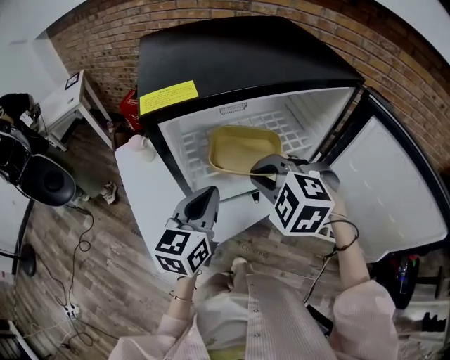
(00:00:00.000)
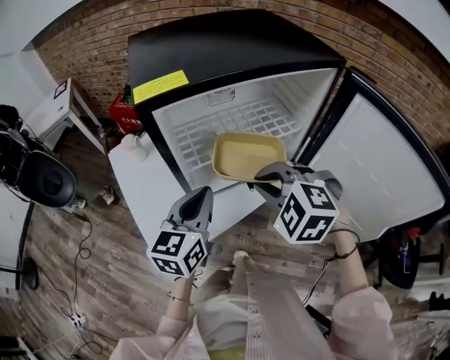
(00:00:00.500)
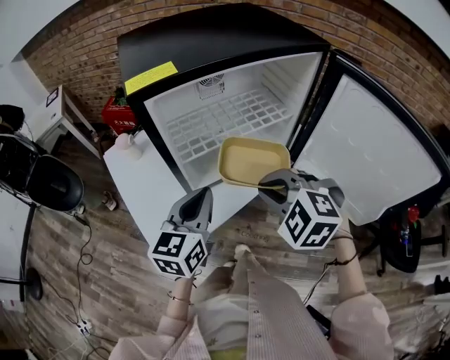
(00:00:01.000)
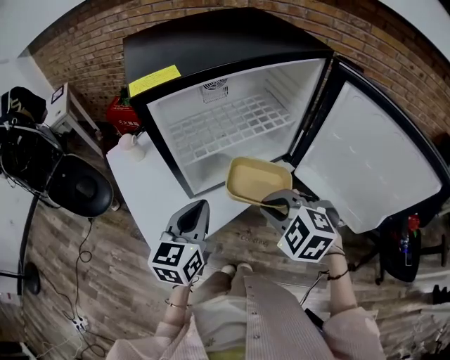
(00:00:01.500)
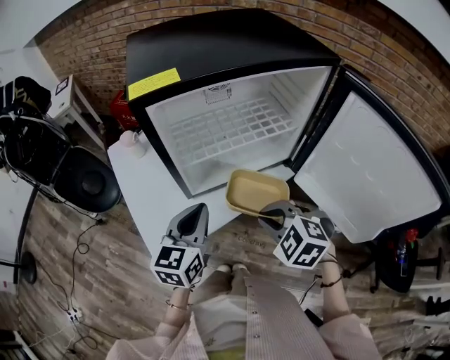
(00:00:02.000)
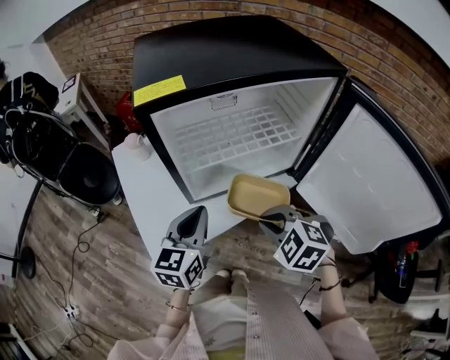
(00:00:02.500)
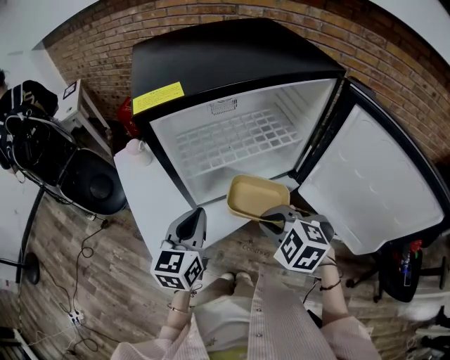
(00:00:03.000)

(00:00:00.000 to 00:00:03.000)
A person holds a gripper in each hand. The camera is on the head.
00:00:00.000 - 00:00:01.500: The right gripper is displaced backward and downward by some 15 cm, while the left gripper is displaced backward by roughly 5 cm.
00:00:01.500 - 00:00:03.000: There are only small adjustments of the grippers.

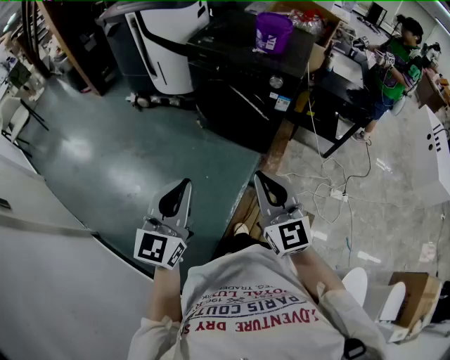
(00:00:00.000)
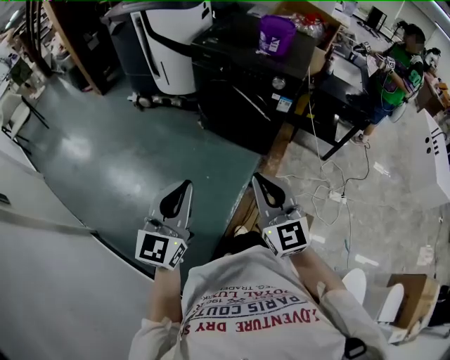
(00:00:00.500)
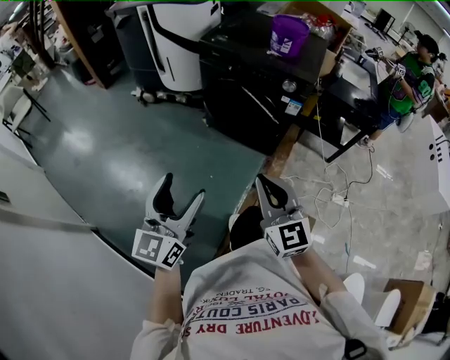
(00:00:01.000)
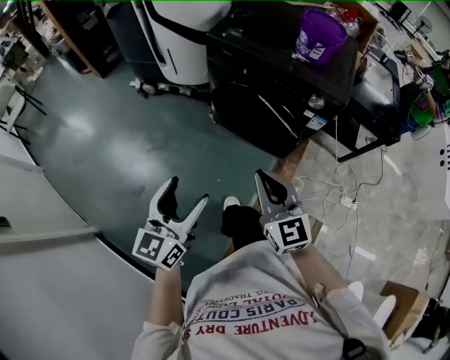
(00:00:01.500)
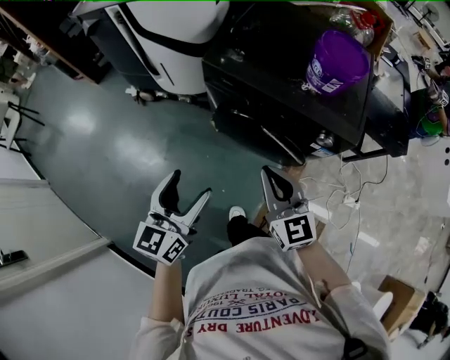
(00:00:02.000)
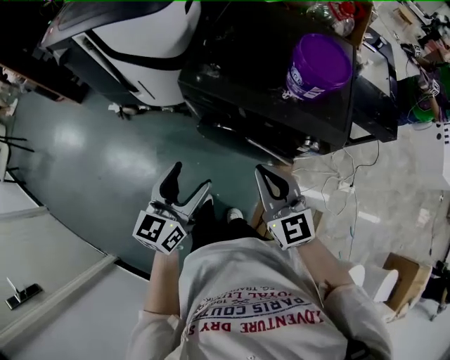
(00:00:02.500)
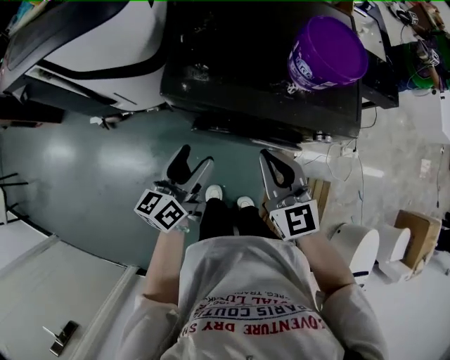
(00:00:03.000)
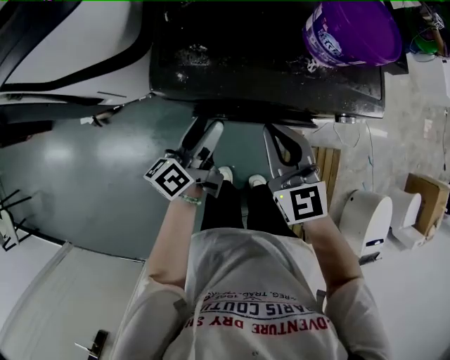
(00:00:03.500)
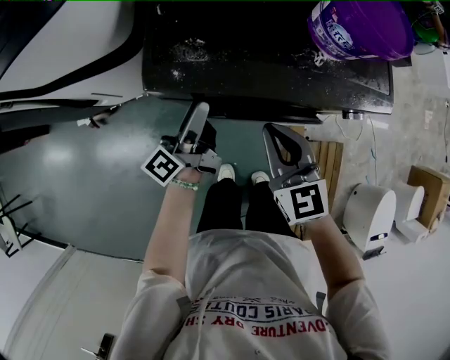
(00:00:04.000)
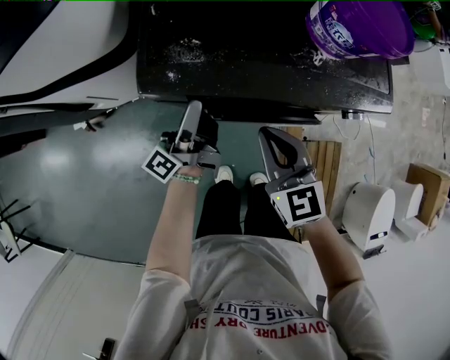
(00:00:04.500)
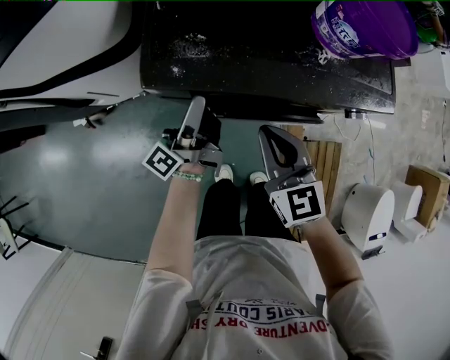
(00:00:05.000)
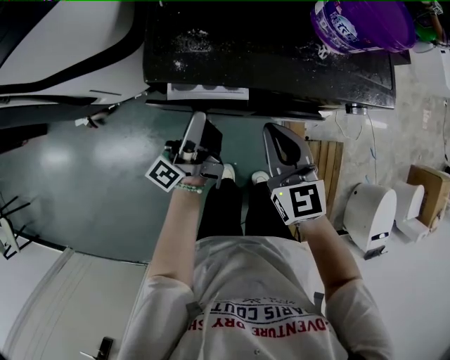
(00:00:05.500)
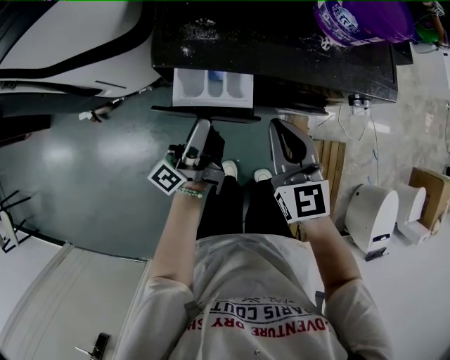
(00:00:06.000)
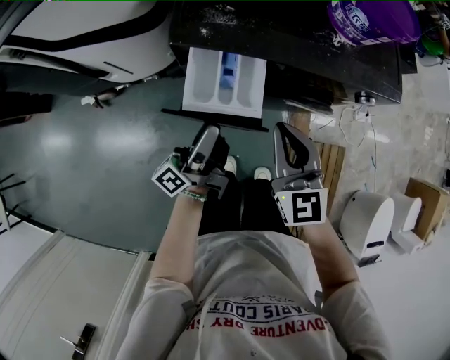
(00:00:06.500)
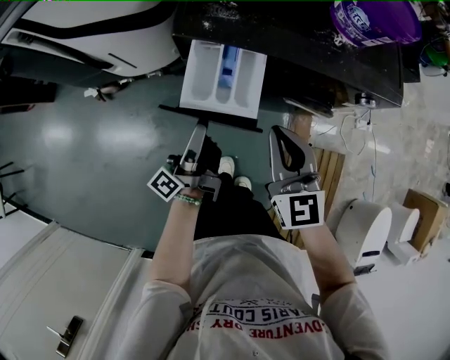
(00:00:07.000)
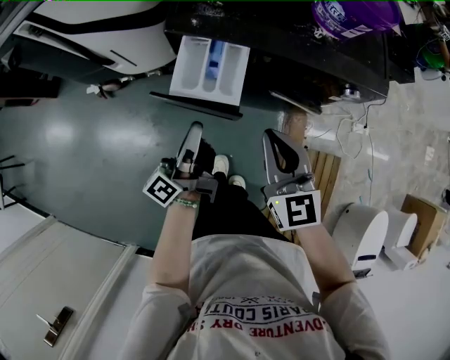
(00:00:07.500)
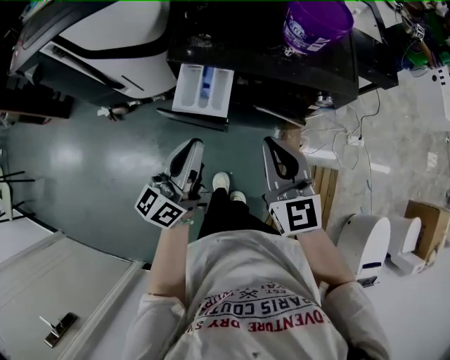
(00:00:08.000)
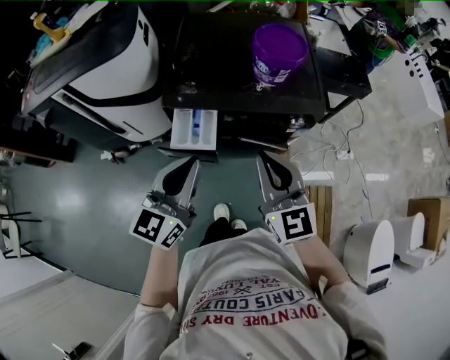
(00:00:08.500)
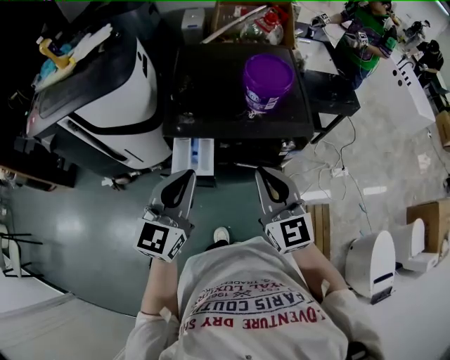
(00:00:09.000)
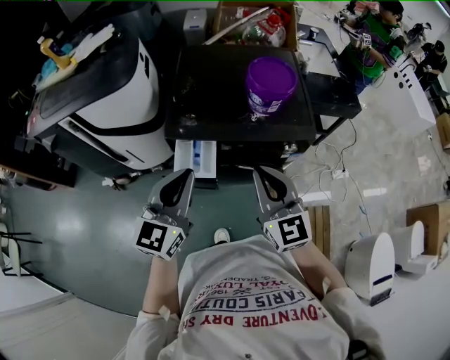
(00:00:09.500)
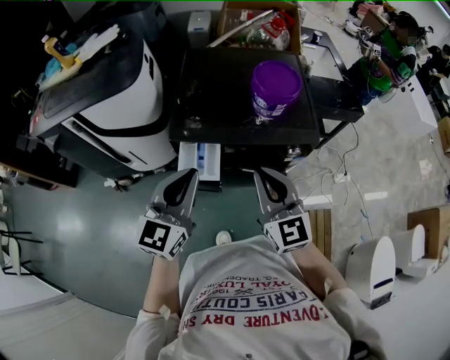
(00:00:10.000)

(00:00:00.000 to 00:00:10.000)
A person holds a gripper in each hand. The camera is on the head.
00:00:00.000 - 00:00:02.000: Both grippers move forward, about 40 cm. The left gripper changes its angle by some 20 degrees, and opens its fingers.
00:00:02.000 - 00:00:04.000: The left gripper moves approximately 40 cm, and rolls counterclockwise, seen from behind, by some 60 degrees. The right gripper moves roughly 20 cm, and rotates about 30 degrees.
00:00:04.000 - 00:00:06.000: The left gripper travels backward by some 5 cm.
00:00:06.000 - 00:00:08.000: Both grippers travel together upward and backward, about 20 cm. The left gripper rotates around the line of its fingers by some 40 degrees, clockwise from behind, and closes up.
00:00:08.000 - 00:00:10.000: Both grippers move upward, some 15 cm. The left gripper rotates about 40 degrees.

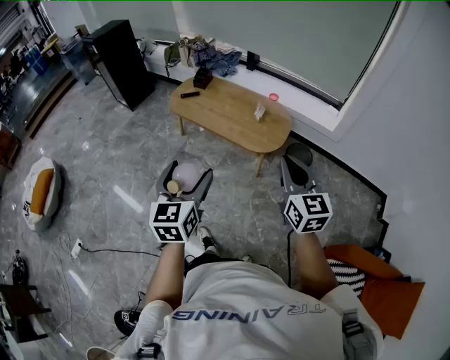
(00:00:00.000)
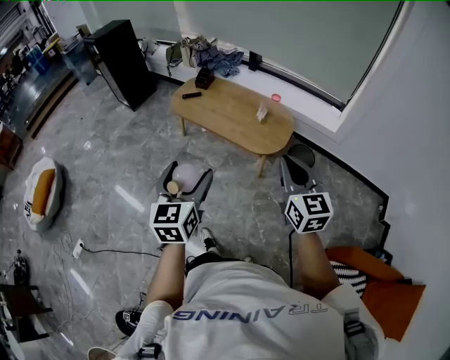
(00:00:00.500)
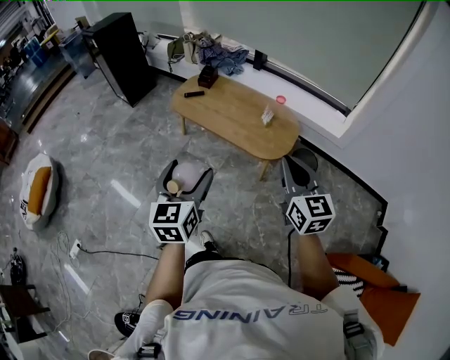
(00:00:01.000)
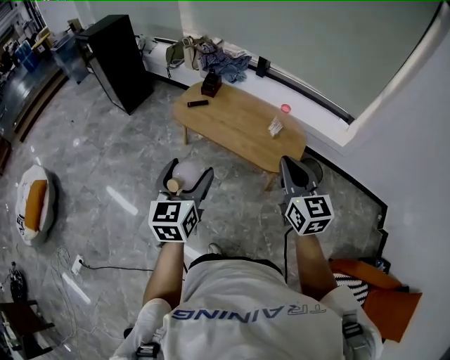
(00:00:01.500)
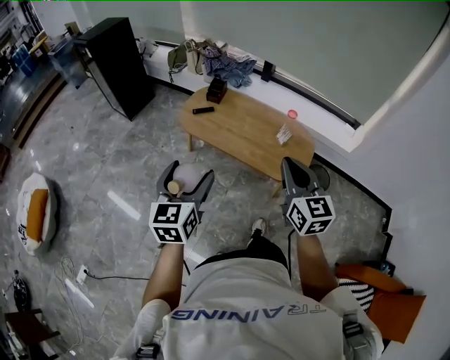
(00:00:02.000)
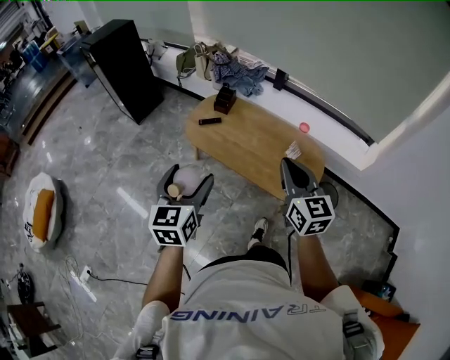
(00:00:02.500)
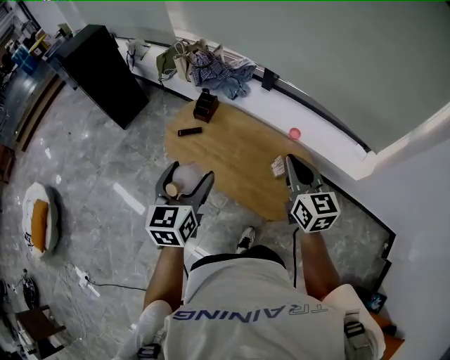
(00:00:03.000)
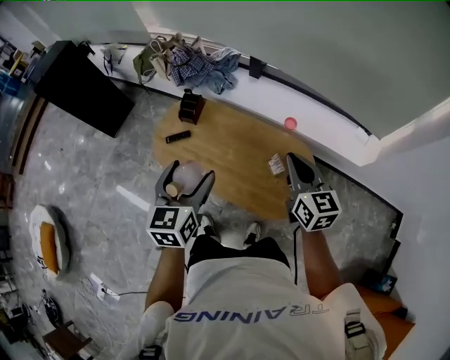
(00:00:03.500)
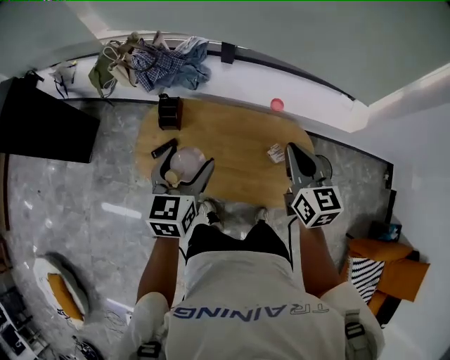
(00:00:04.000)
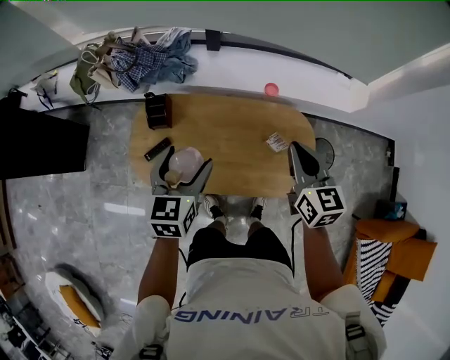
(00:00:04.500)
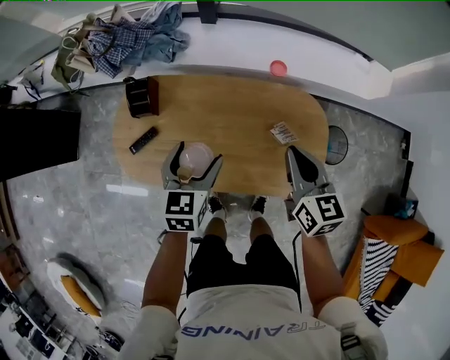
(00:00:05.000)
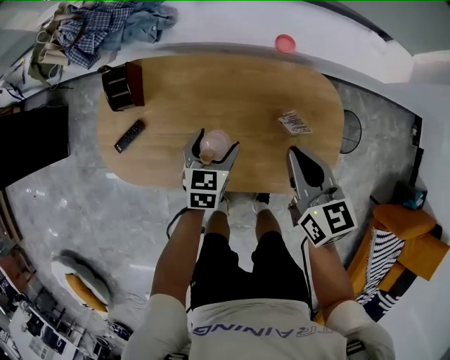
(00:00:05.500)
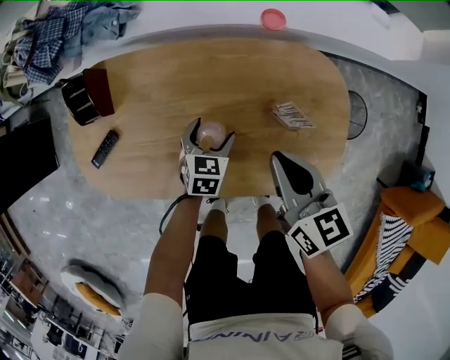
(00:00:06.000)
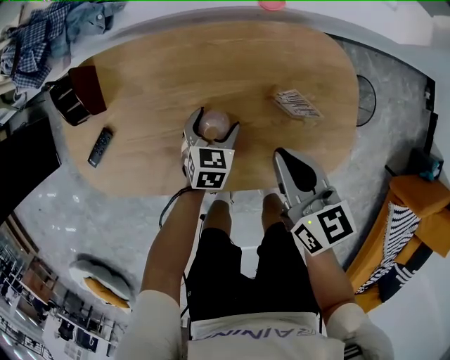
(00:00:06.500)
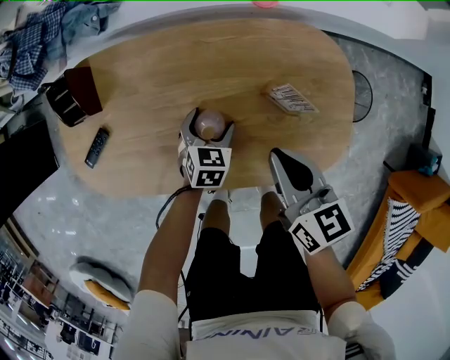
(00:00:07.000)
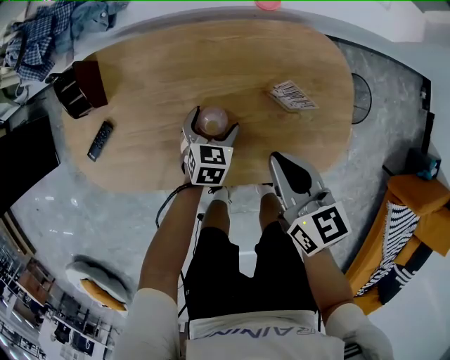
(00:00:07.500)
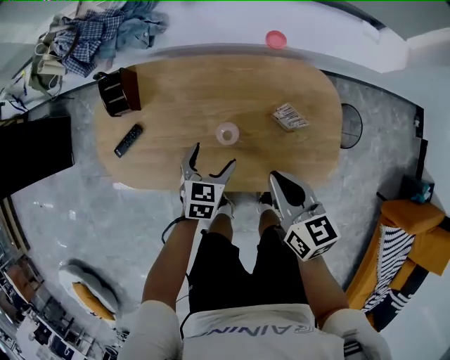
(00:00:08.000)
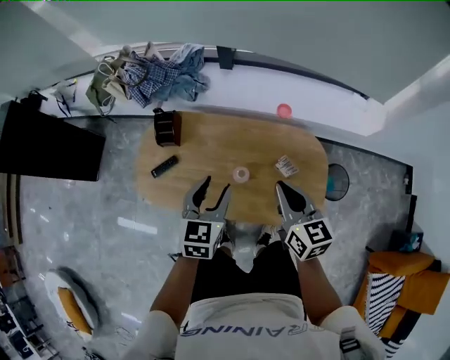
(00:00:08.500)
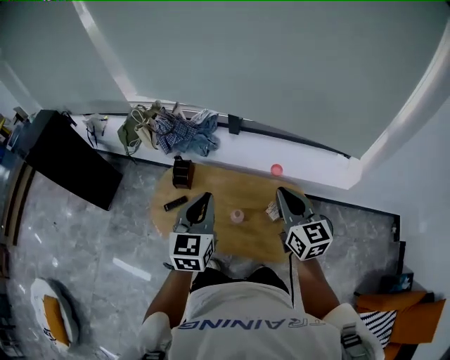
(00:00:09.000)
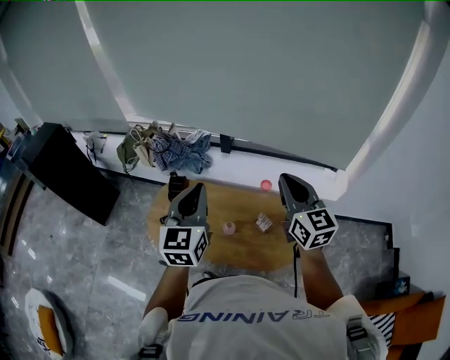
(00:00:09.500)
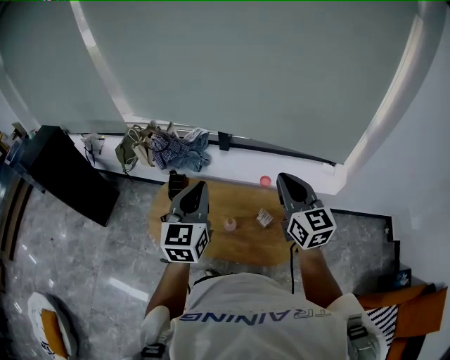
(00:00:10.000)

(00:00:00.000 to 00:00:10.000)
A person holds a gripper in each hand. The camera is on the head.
00:00:00.000 - 00:00:02.000: The grippers both shift forward and to the left by roughly 30 cm.
00:00:02.000 - 00:00:04.000: The two grippers travel together, forward, some 50 cm. The left gripper swivels approximately 30 degrees; the right gripper rotates some 20 degrees.
00:00:04.000 - 00:00:06.000: The right gripper shifts approximately 35 cm downward, and turns by about 20 degrees. The left gripper travels downward by some 50 cm, and turns by about 30 degrees.
00:00:06.000 - 00:00:08.000: The left gripper travels upward and backward by about 10 cm, while the right gripper travels backward by roughly 5 cm.
00:00:08.000 - 00:00:10.000: Both grippers move upward, roughly 50 cm. The right gripper changes its angle by some 40 degrees; the left gripper angles its fingers upward, by about 40 degrees, and closes up.

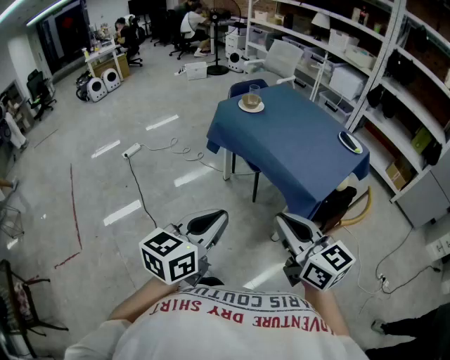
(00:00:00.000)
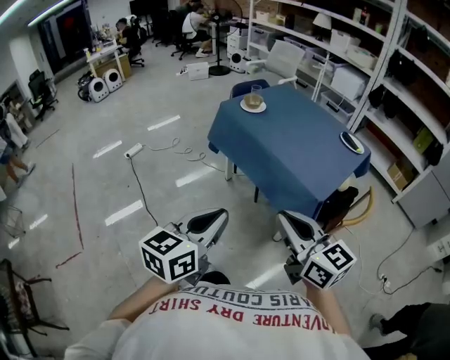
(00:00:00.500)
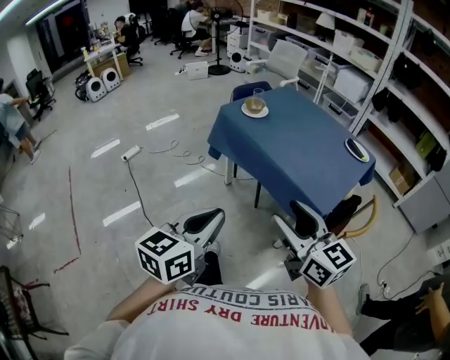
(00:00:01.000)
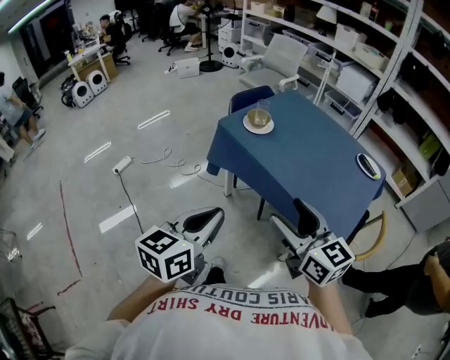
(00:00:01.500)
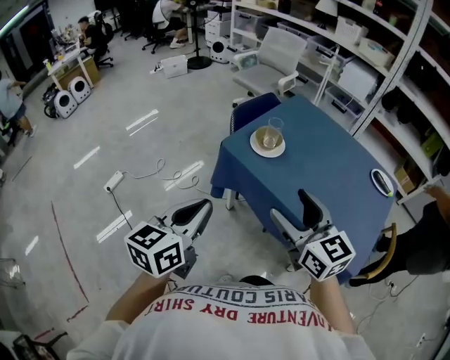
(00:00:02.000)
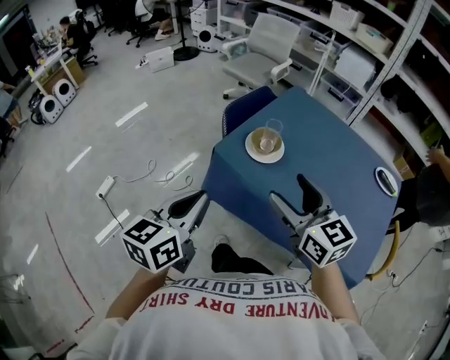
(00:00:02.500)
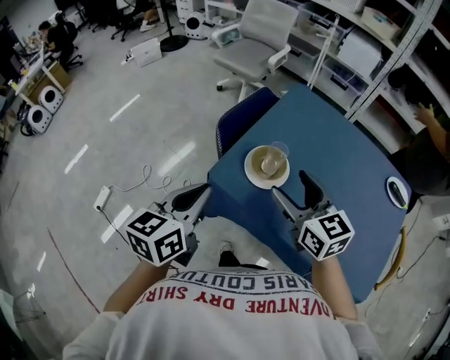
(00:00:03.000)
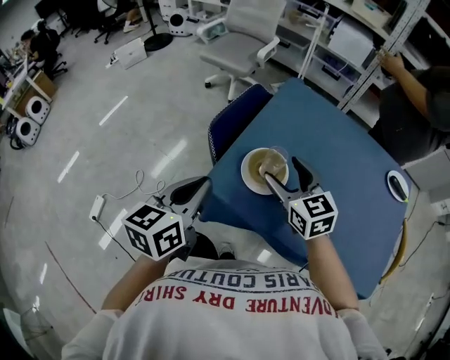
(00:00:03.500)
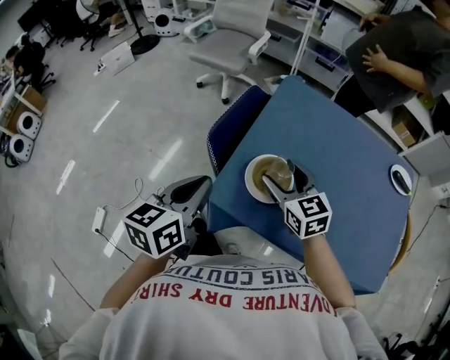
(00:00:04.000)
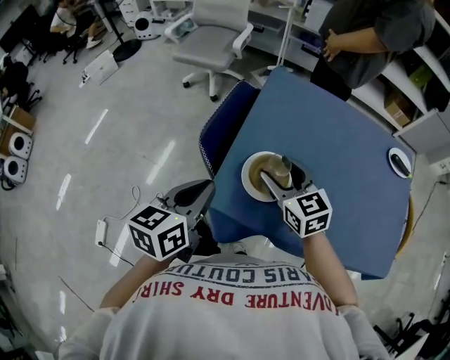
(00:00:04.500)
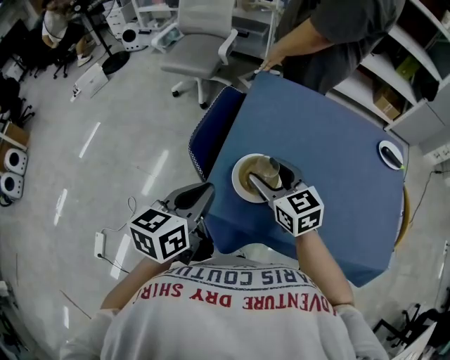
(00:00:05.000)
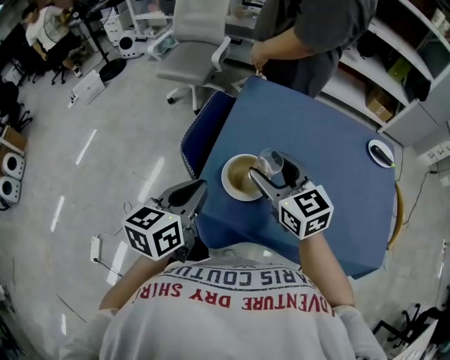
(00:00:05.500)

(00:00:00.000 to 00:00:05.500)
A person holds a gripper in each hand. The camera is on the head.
00:00:00.000 - 00:00:02.000: The pair of grippers is taken forward, roughly 40 cm. The right gripper opens.
00:00:02.000 - 00:00:03.500: The left gripper moves forward, some 30 cm. The right gripper moves forward and downward, some 35 cm.
00:00:03.500 - 00:00:05.500: The left gripper shifts about 5 cm forward.
